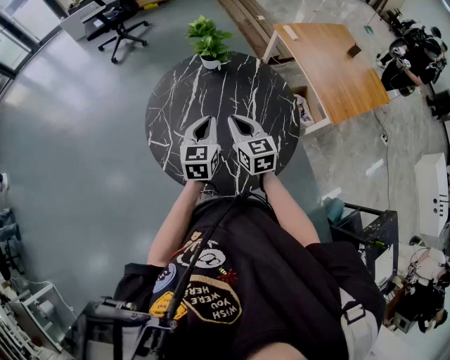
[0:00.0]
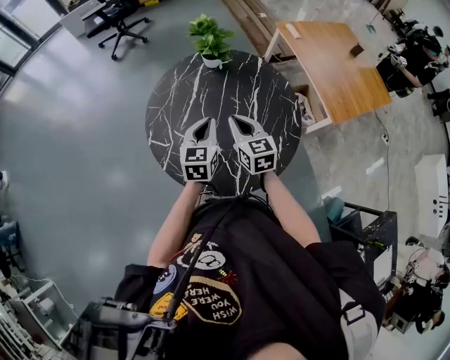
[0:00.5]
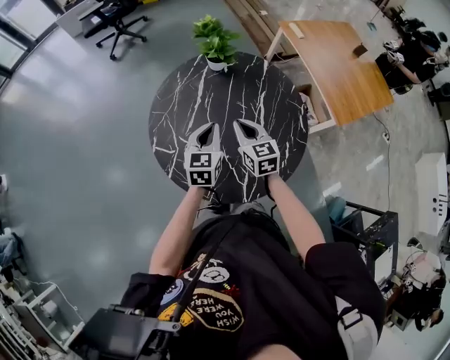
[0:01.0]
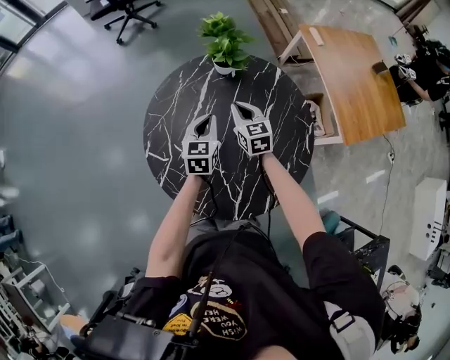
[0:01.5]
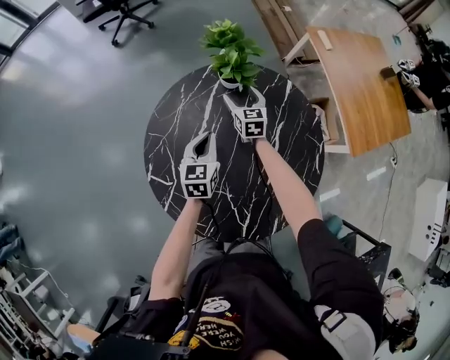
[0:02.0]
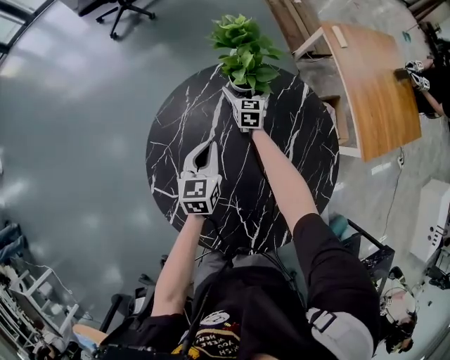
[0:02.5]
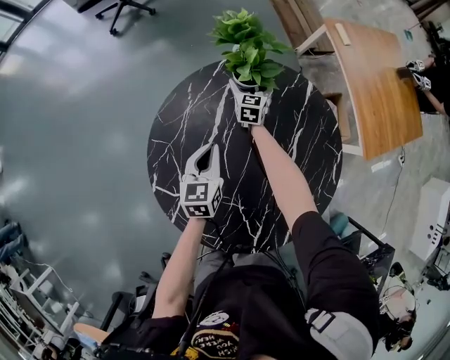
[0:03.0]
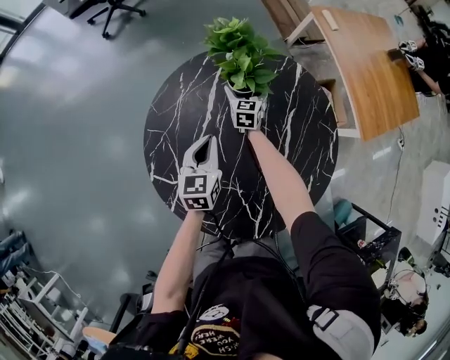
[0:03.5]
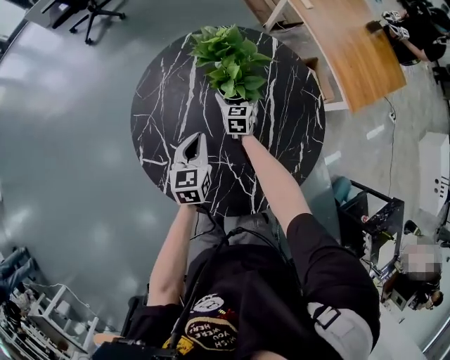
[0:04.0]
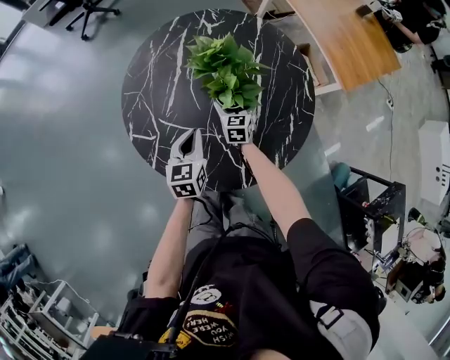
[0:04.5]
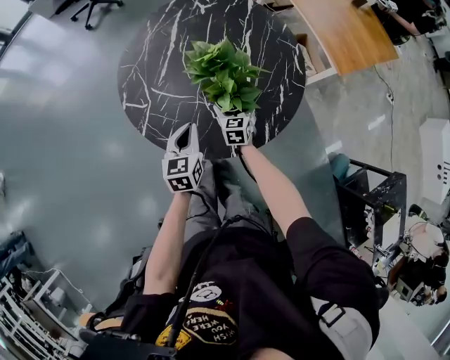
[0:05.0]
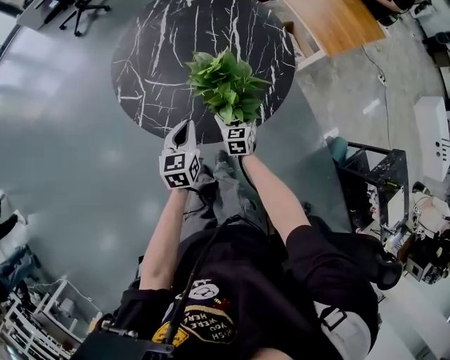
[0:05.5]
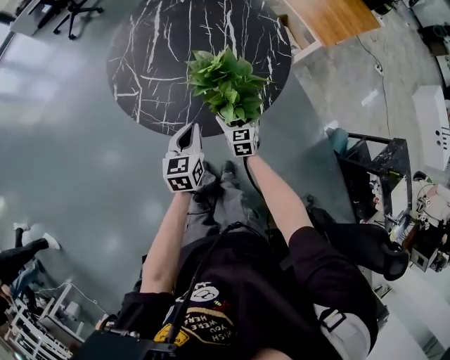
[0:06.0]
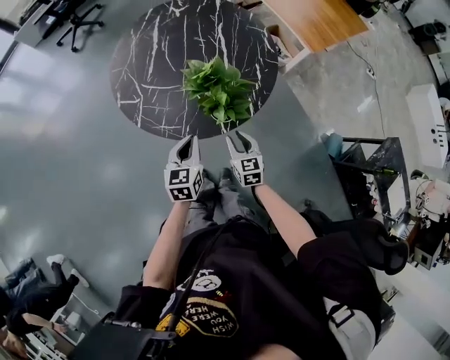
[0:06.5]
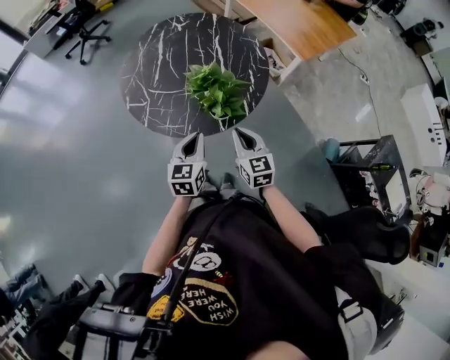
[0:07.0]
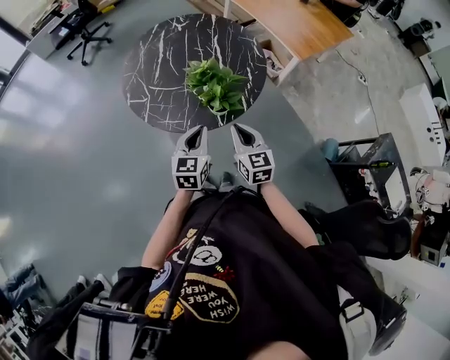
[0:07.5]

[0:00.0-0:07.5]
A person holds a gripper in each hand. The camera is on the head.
0:00.0 to 0:02.0: The left gripper goes about 25 cm forward and downward, while the right gripper is displaced forward and downward by some 40 cm, and opens.
0:02.0 to 0:04.0: The right gripper is displaced backward, downward and to the right by approximately 15 cm, while the left gripper heads backward, covering about 10 cm.
0:04.0 to 0:05.5: The left gripper heads backward, covering about 25 cm; the right gripper moves backward, roughly 35 cm.
0:05.5 to 0:07.5: The right gripper goes about 35 cm upward and backward, turns by some 20 degrees, and closes up. Meanwhile the left gripper goes about 20 cm upward, backward and to the right.

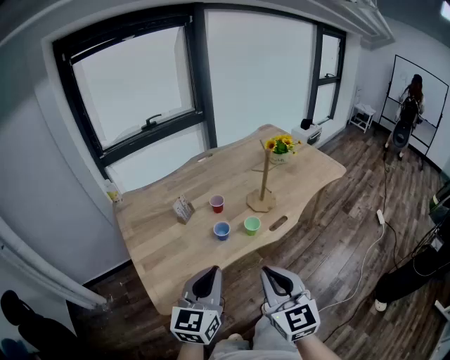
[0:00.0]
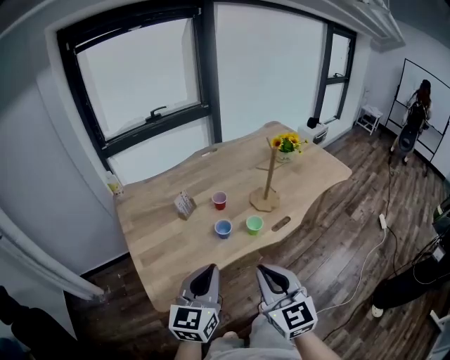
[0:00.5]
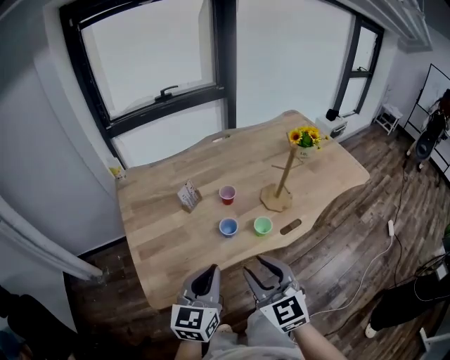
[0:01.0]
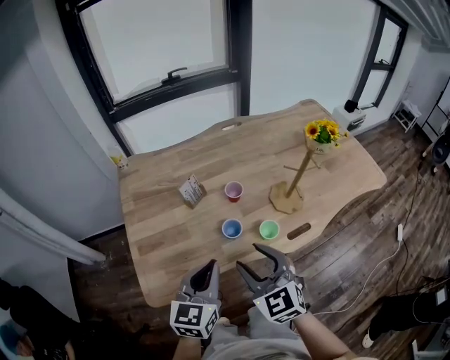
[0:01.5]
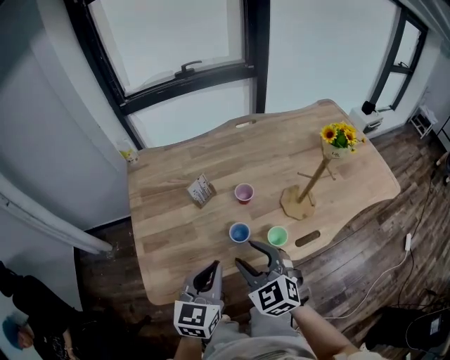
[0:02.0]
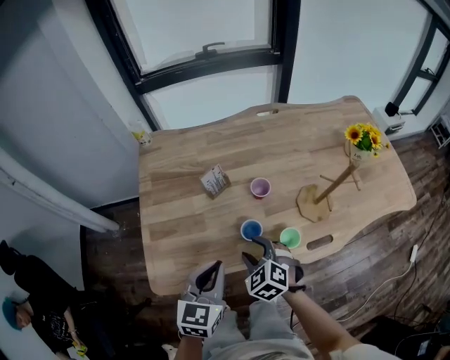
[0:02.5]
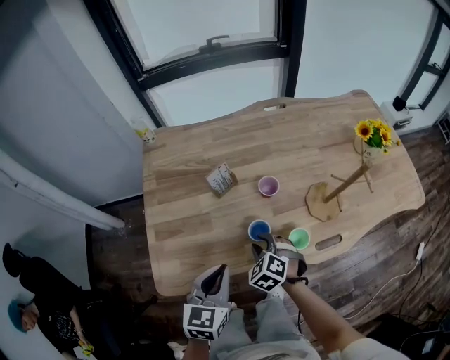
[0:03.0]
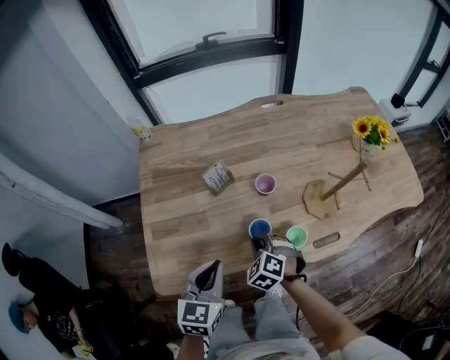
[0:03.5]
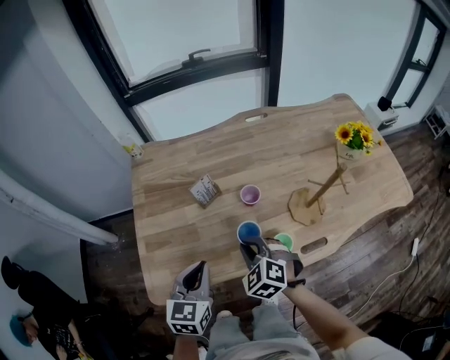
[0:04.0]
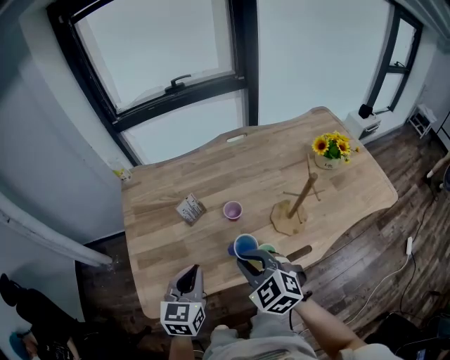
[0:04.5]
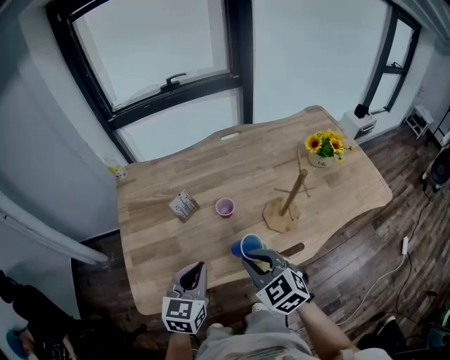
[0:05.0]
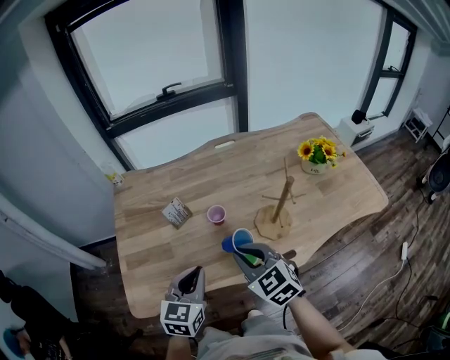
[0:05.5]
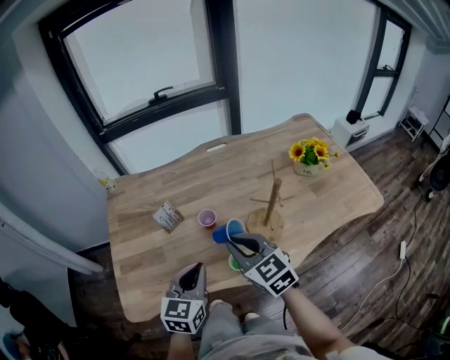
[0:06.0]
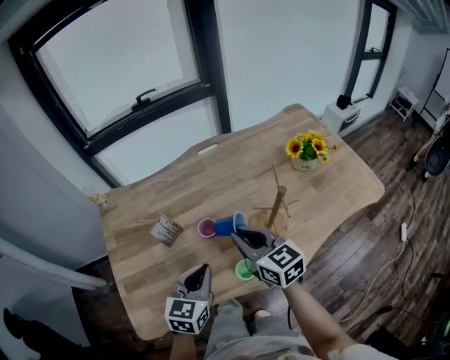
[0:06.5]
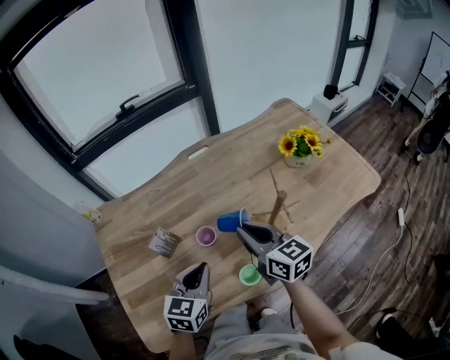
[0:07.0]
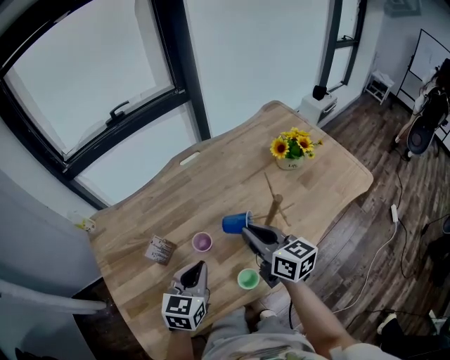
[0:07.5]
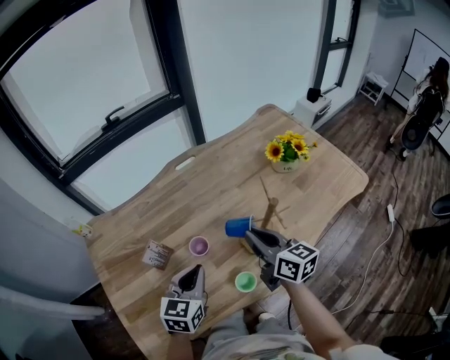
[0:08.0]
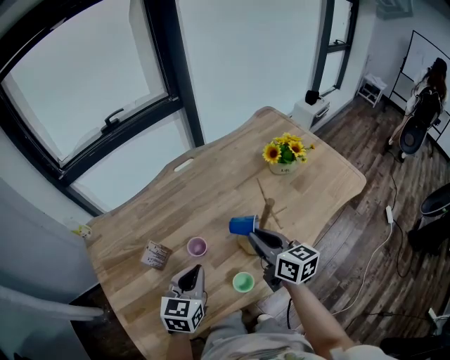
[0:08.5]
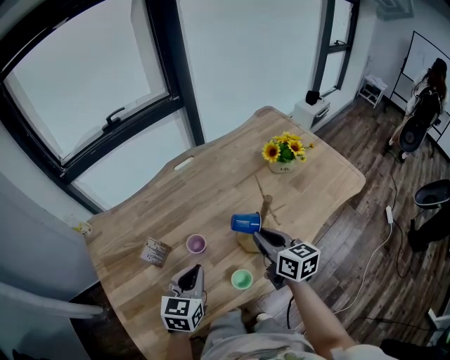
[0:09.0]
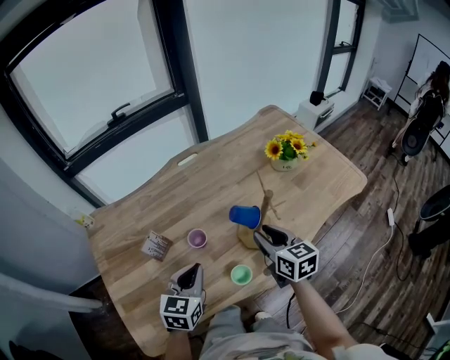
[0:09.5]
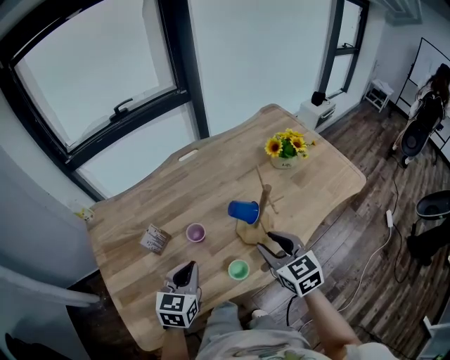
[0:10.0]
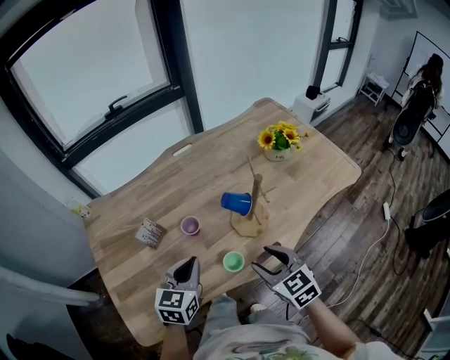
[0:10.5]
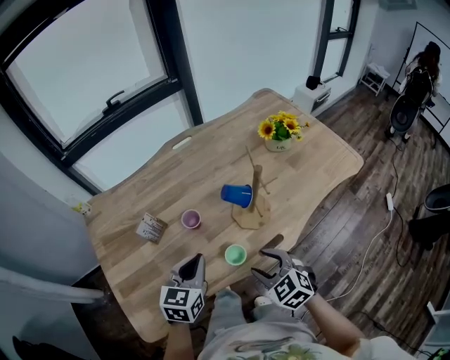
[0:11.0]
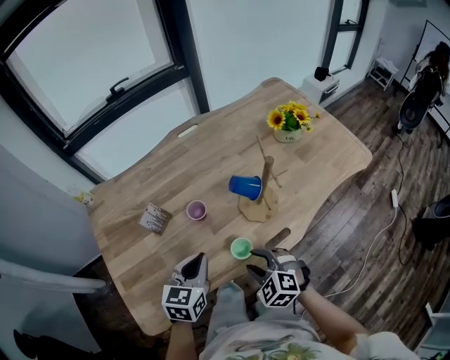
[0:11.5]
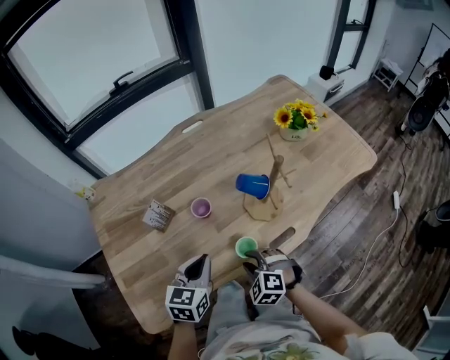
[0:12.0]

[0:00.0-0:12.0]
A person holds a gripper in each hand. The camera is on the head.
0:00.0 to 0:02.0: Both grippers travel together forward and downward, roughly 20 cm. The right gripper rotates some 40 degrees, and opens its fingers, while the left gripper swivels some 20 degrees.
0:02.0 to 0:04.0: The left gripper changes place by some 5 cm, while the right gripper heads downward and forward, covering about 10 cm, rotates roughly 20 degrees, and closes.
0:04.0 to 0:06.0: The left gripper heads to the right, covering roughly 15 cm. Meanwhile the right gripper heads to the right and upward, covering roughly 20 cm, and swivels about 40 degrees.
0:06.0 to 0:08.0: The right gripper moves forward and to the right, about 15 cm, and turns by approximately 40 degrees. The left gripper goes approximately 10 cm forward.
0:08.0 to 0:10.0: The right gripper travels backward by some 10 cm, changes its angle by some 40 degrees, and opens.
0:10.0 to 0:12.0: The right gripper heads downward, to the left and backward, covering roughly 25 cm, and rotates around the line of its fingers by some 40 degrees, counterclockwise from behind; the left gripper moves approximately 5 cm.

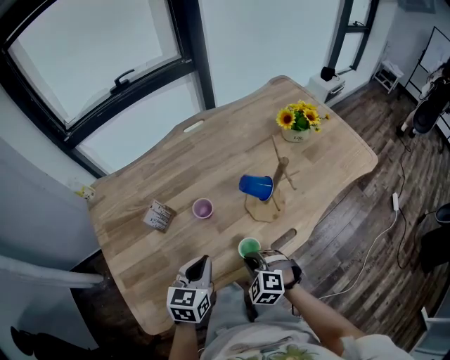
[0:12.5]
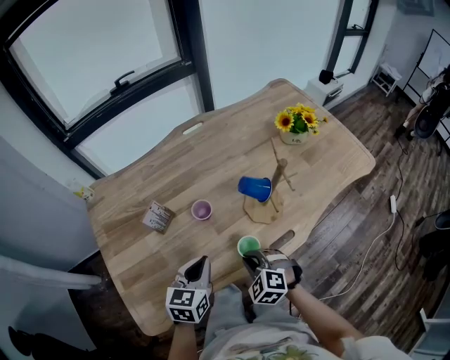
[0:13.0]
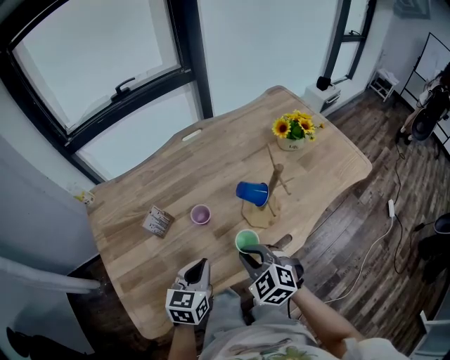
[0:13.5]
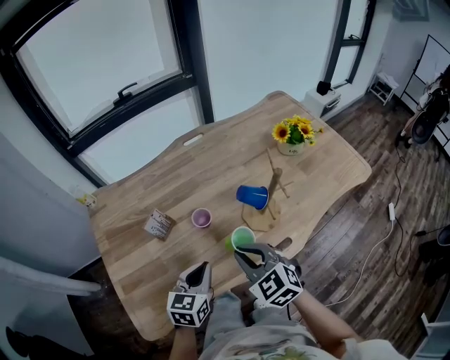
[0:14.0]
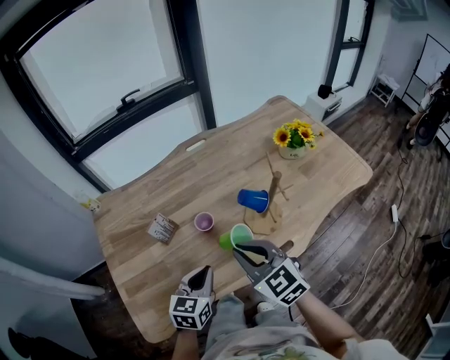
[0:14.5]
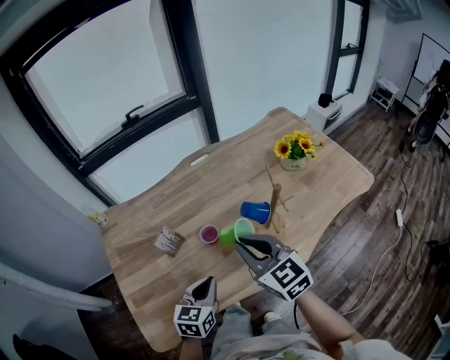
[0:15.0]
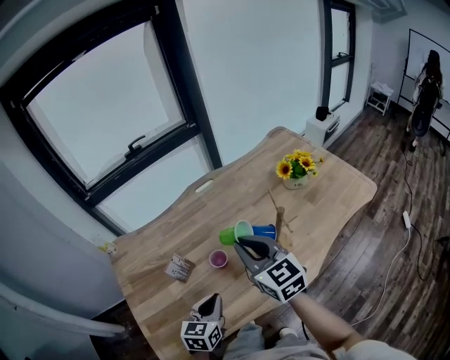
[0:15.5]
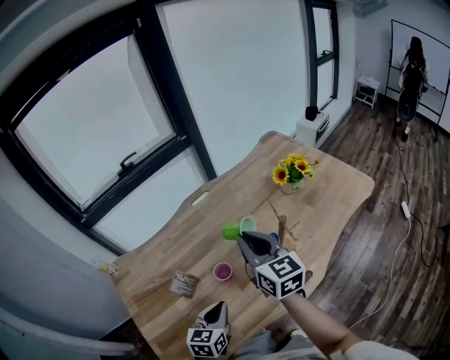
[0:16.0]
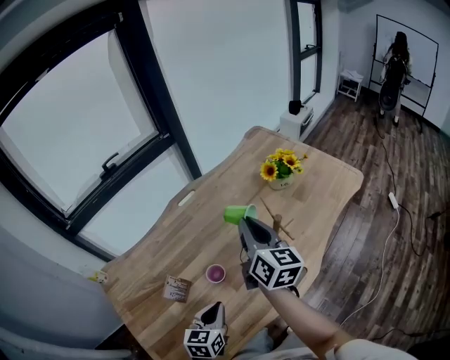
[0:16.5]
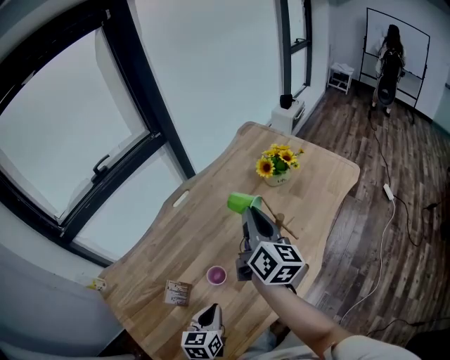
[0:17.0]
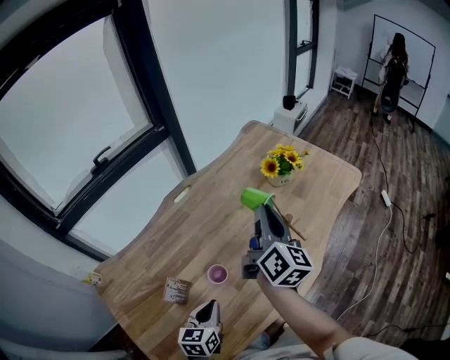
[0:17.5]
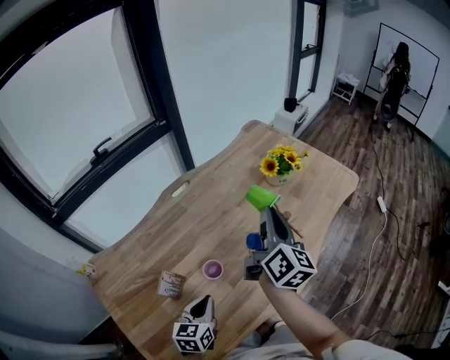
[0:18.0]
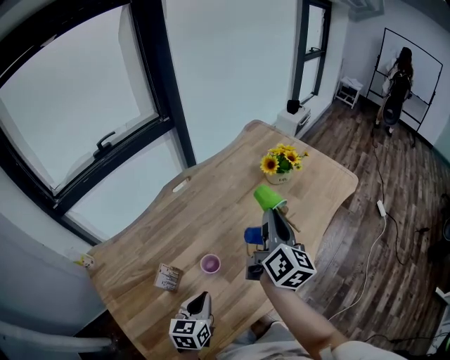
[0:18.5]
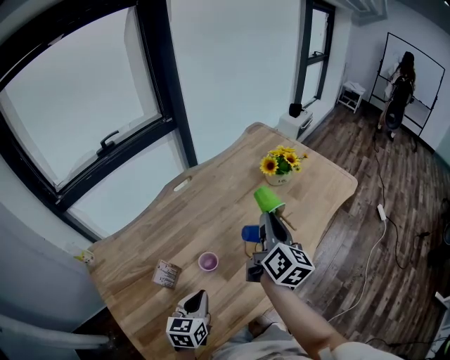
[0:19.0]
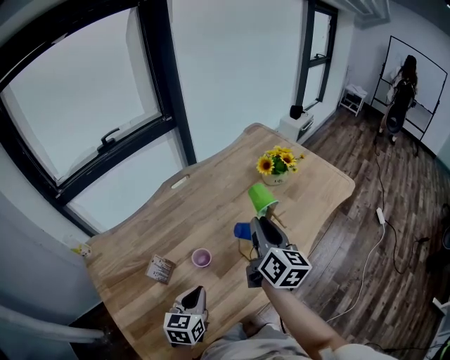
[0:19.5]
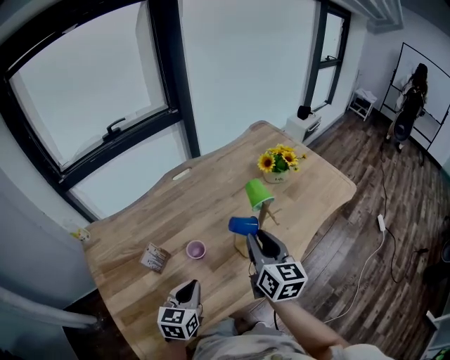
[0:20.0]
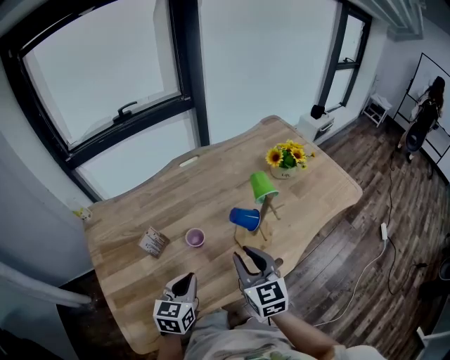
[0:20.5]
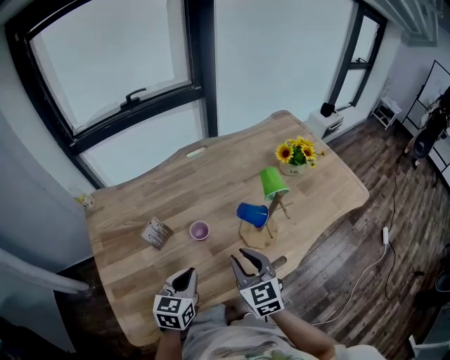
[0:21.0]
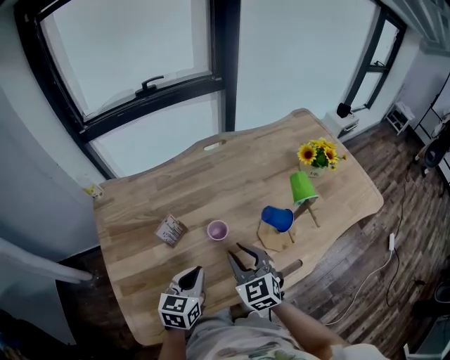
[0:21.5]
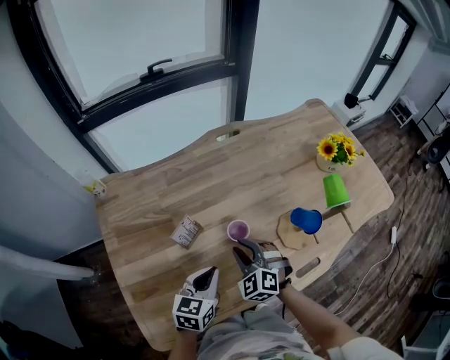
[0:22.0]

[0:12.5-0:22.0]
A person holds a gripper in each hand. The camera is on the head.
0:12.5 to 0:14.5: The right gripper goes some 20 cm upward, and tilts its fingers some 30 degrees upward.
0:14.5 to 0:16.5: The left gripper changes place by approximately 5 cm. The right gripper shifts by about 20 cm, and turns by about 60 degrees.
0:16.5 to 0:18.0: The right gripper changes its angle by approximately 20 degrees.
0:18.0 to 0:20.0: The left gripper shifts by approximately 5 cm; the right gripper travels backward and downward by some 10 cm, and rotates approximately 30 degrees.
0:20.0 to 0:22.0: The right gripper heads to the left and downward, covering roughly 30 cm, and twists about 70 degrees counterclockwise, seen from behind, while the left gripper heads to the left and downward, covering some 10 cm.
